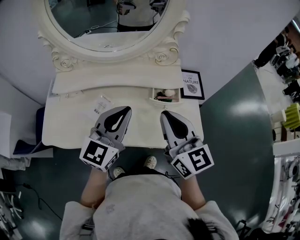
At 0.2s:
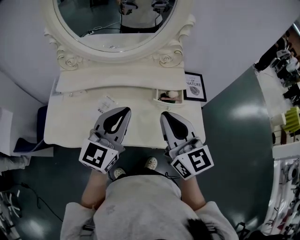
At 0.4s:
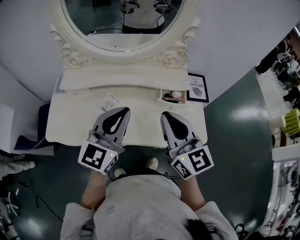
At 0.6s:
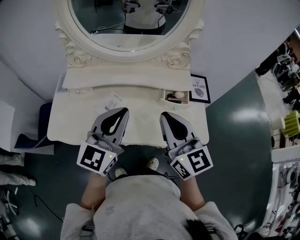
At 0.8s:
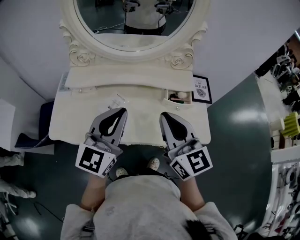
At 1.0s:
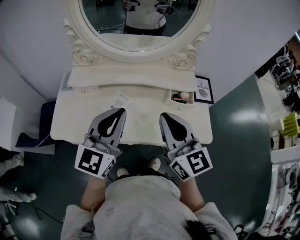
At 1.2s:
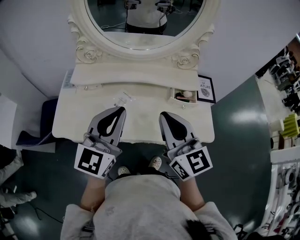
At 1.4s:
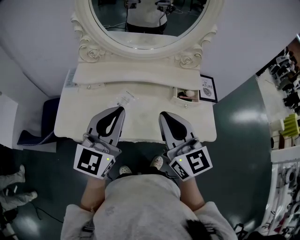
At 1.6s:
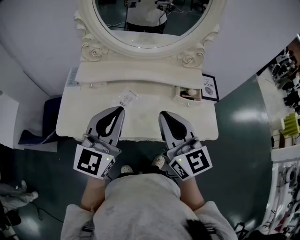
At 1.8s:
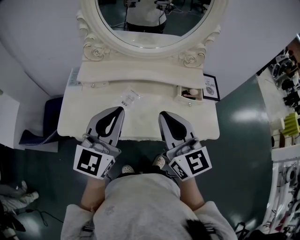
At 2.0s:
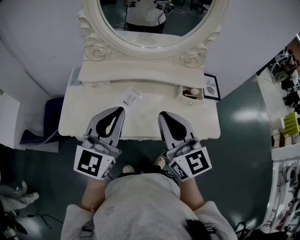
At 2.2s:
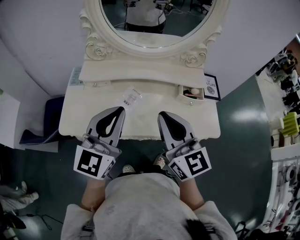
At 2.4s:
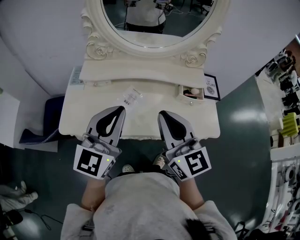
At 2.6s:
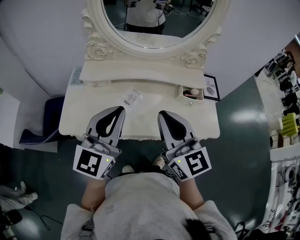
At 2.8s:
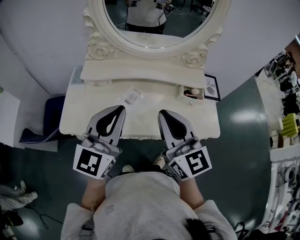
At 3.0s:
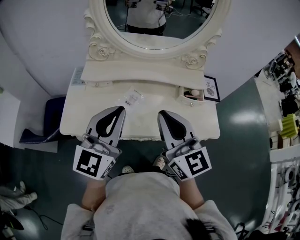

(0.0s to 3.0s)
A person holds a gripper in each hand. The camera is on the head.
0.0s - 1.6s: Both grippers travel together to the left, roughly 15 cm.
1.6s - 3.0s: The grippers stay close to where they were, moving slightly.

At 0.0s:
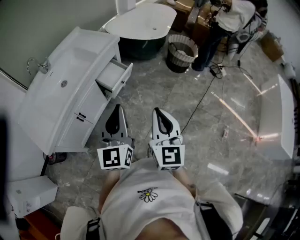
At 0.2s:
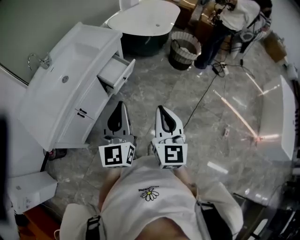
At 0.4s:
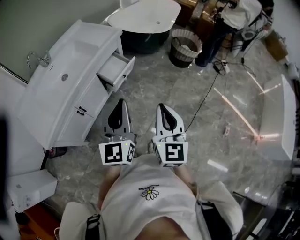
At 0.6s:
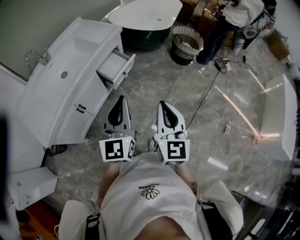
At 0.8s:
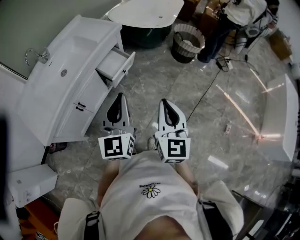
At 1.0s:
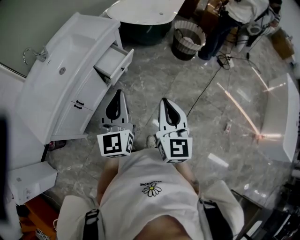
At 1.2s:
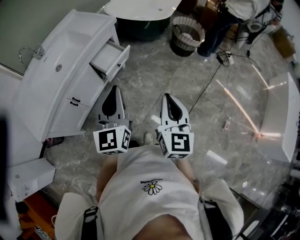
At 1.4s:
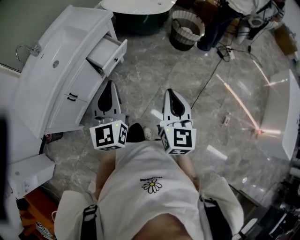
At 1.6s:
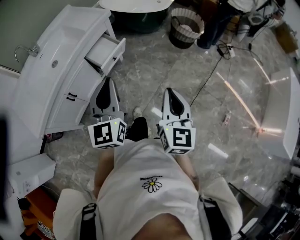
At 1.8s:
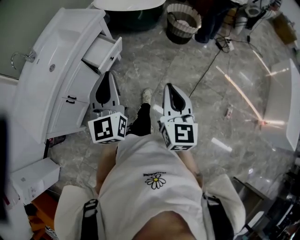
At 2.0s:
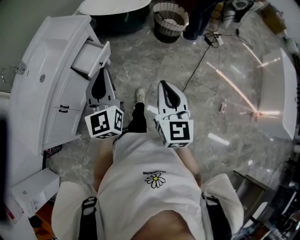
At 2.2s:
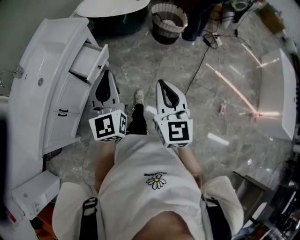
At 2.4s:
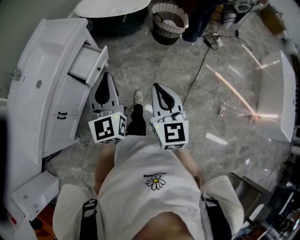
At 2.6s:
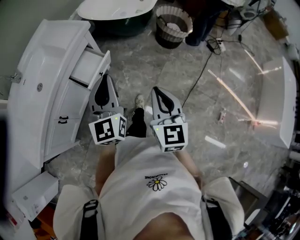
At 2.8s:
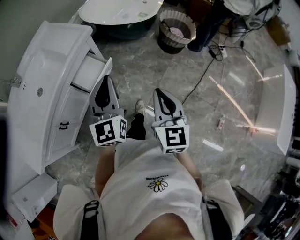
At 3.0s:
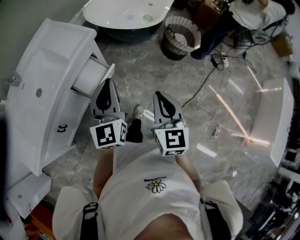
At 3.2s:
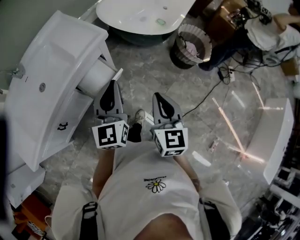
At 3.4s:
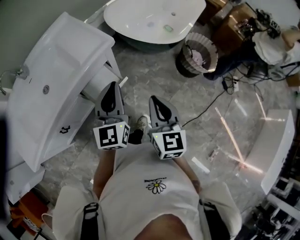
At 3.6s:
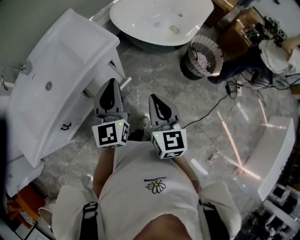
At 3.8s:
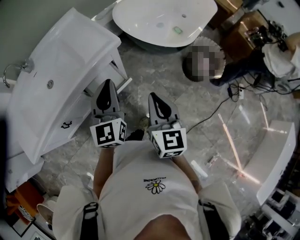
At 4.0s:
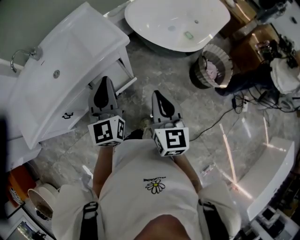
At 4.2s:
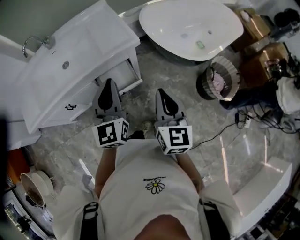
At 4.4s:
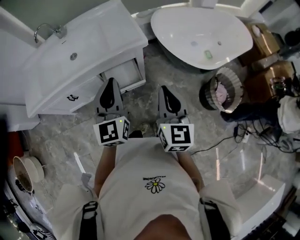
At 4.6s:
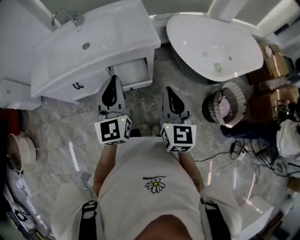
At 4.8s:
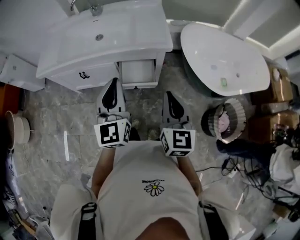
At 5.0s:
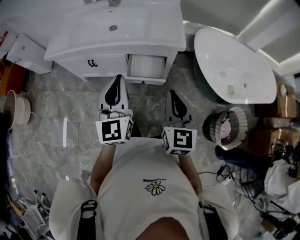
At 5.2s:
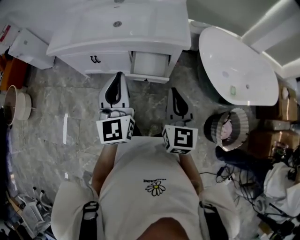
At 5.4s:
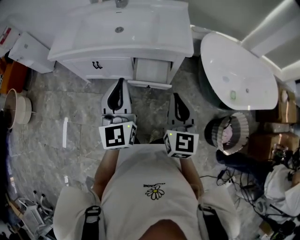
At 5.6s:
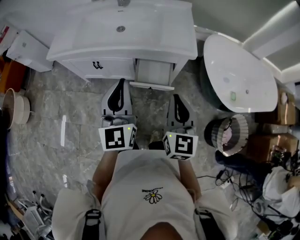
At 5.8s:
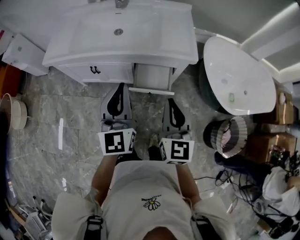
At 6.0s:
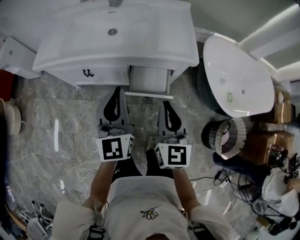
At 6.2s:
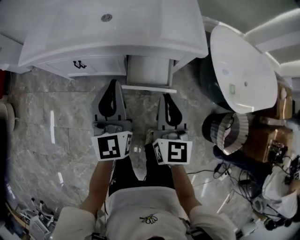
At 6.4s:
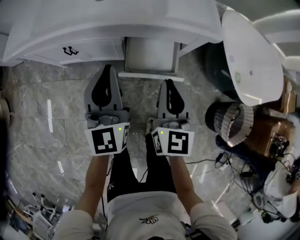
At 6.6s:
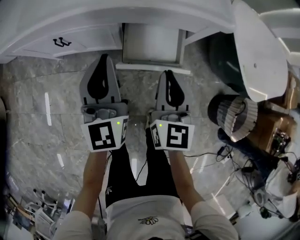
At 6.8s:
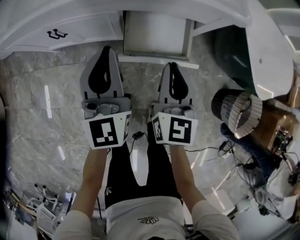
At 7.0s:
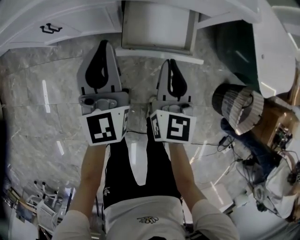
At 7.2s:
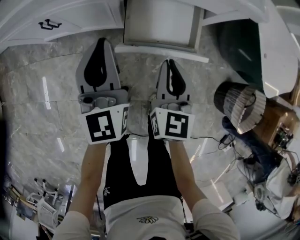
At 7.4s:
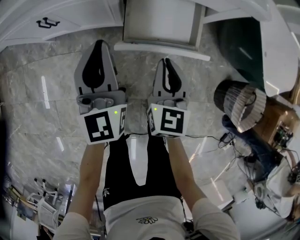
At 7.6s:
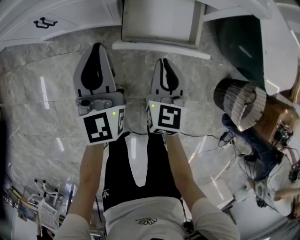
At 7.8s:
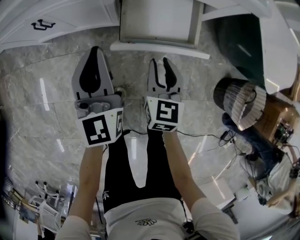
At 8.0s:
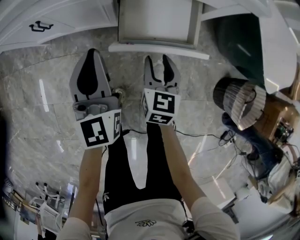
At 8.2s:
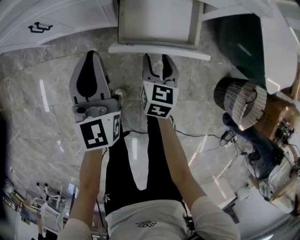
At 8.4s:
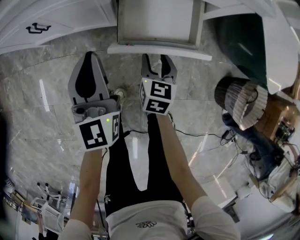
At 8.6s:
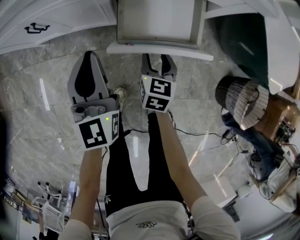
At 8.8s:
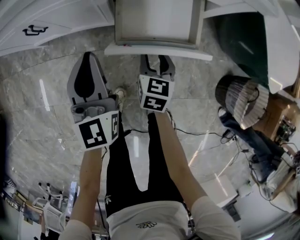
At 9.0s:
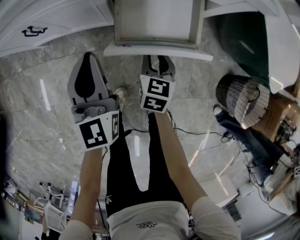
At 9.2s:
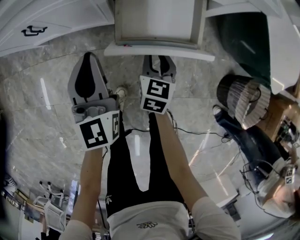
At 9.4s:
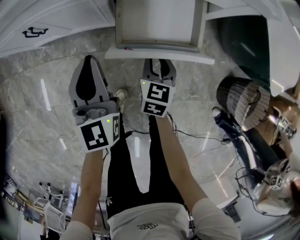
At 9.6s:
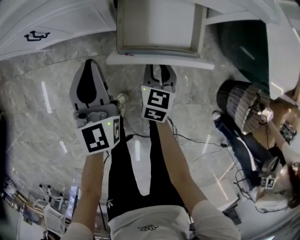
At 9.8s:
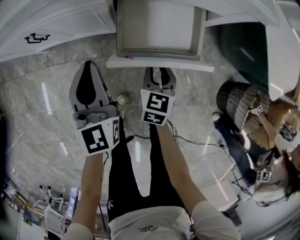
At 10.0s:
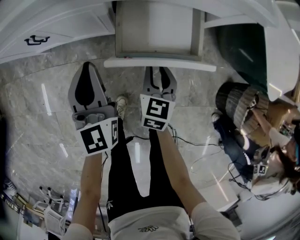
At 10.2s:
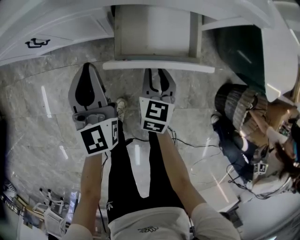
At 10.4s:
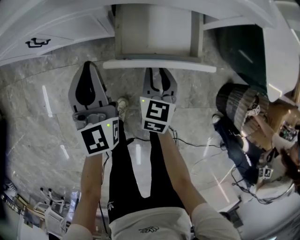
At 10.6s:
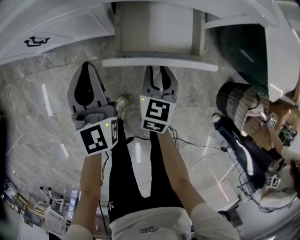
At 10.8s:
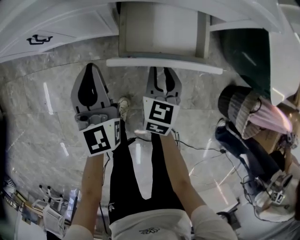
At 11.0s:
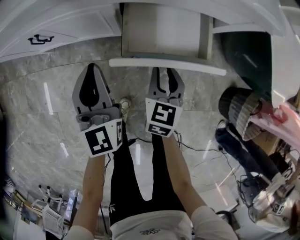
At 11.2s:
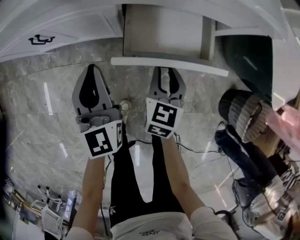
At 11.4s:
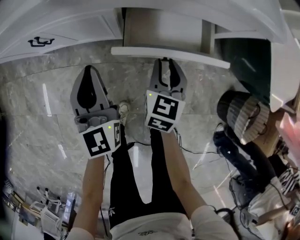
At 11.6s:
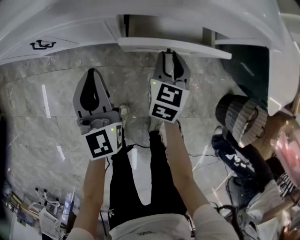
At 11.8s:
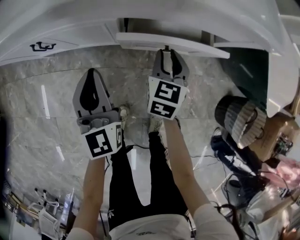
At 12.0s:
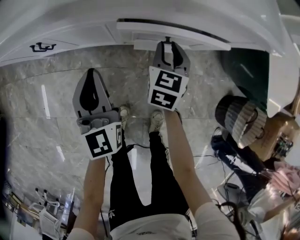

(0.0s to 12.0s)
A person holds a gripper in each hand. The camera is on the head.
0.0s - 1.6s: The left gripper travels to the right and forward by about 10 cm. The right gripper moves to the right, about 15 cm.
1.6s - 3.0s: The two grippers go about 25 cm forward.
3.0s - 4.4s: The right gripper ends up roughly 20 cm from where it was, and rotates approximately 30 degrees, while the left gripper shifts by some 10 cm, and rotates some 40 degrees.
4.4s - 6.0s: The right gripper moves to the left and forward, approximately 15 cm, and rotates roughly 20 degrees; the left gripper travels to the left by approximately 15 cm, and turns by roughly 20 degrees.
6.0s - 7.6s: The grippers both shift downward by roughly 30 cm. The right gripper swivels some 20 degrees.
7.6s - 9.0s: The right gripper is displaced downward by some 10 cm, and opens its fingers.
9.0s - 10.4s: The grippers make only small movements.
10.4s - 12.0s: The right gripper moves forward, roughly 15 cm.

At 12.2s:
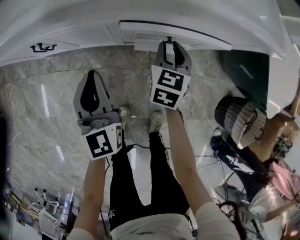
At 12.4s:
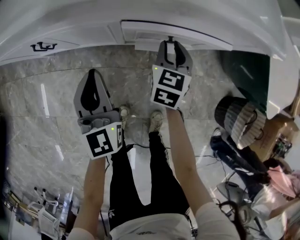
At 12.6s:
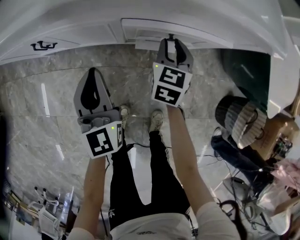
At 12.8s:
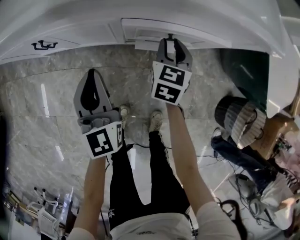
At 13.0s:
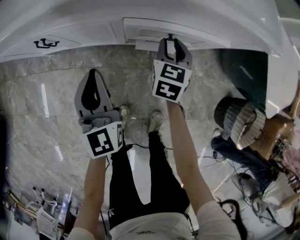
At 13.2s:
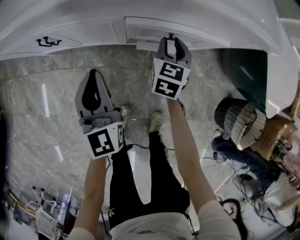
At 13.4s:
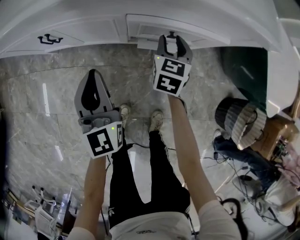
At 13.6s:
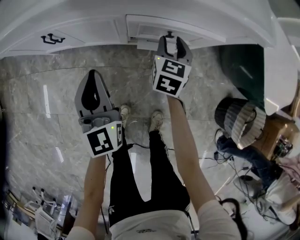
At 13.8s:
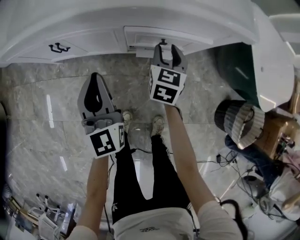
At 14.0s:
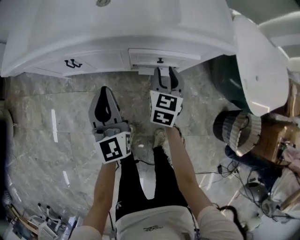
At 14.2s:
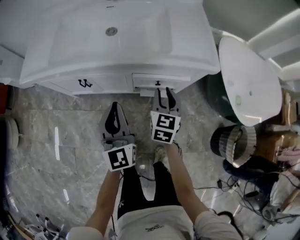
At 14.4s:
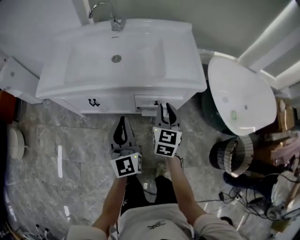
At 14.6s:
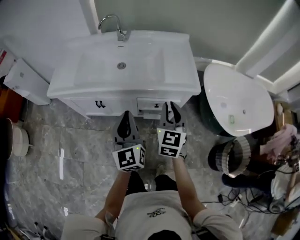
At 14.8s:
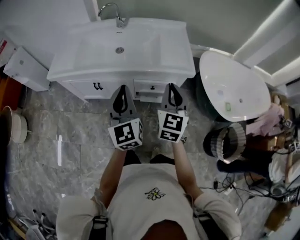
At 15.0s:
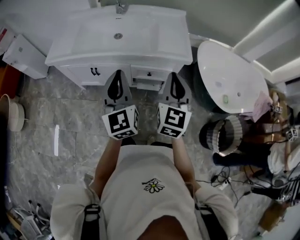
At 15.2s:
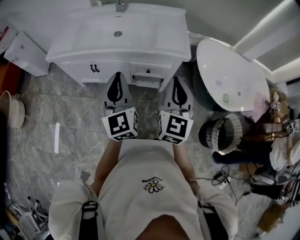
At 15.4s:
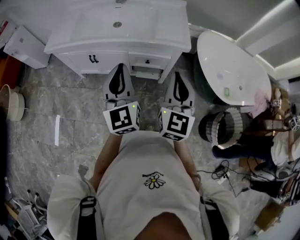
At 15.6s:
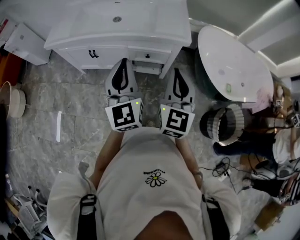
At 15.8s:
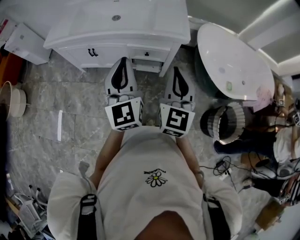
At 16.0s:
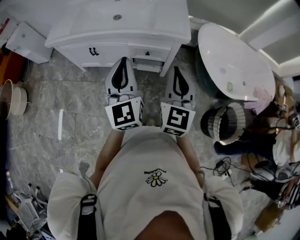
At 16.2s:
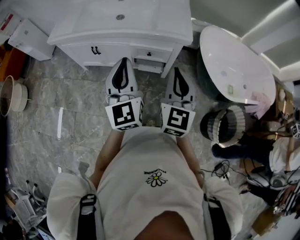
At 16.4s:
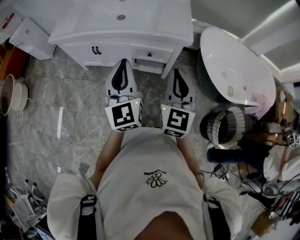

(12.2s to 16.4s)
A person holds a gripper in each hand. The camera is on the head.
12.2s - 13.6s: The grippers make only small movements.
13.6s - 15.0s: The left gripper heads upward, covering approximately 40 cm. Meanwhile the right gripper moves upward and backward, roughly 50 cm, tips its fingers upward by some 30 degrees, and closes.
15.0s - 16.4s: The right gripper heads backward, covering some 10 cm. The left gripper goes about 10 cm backward and to the right.

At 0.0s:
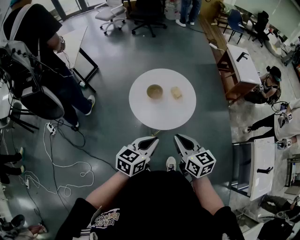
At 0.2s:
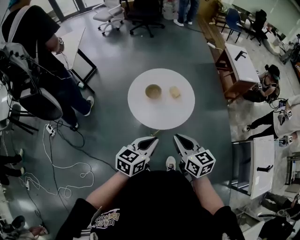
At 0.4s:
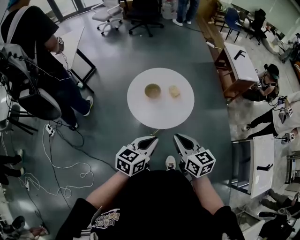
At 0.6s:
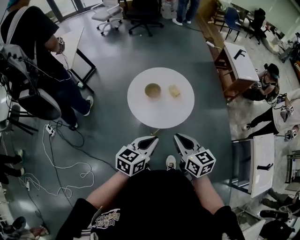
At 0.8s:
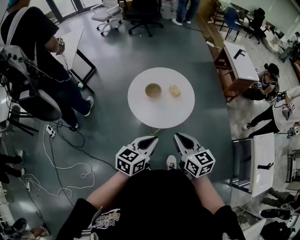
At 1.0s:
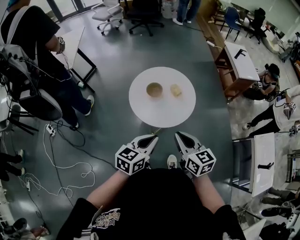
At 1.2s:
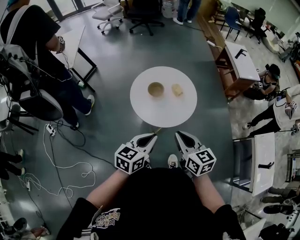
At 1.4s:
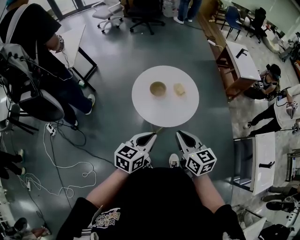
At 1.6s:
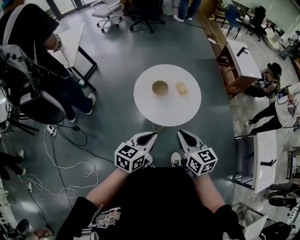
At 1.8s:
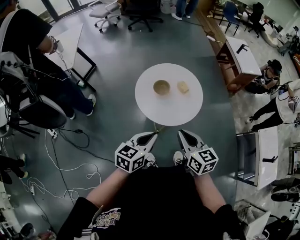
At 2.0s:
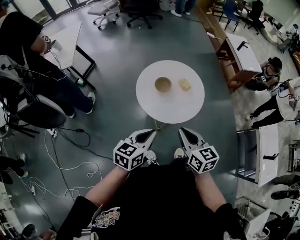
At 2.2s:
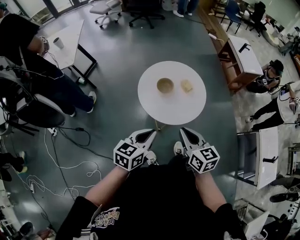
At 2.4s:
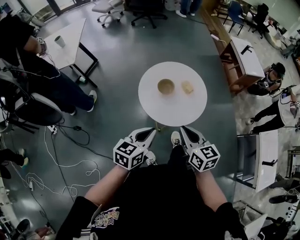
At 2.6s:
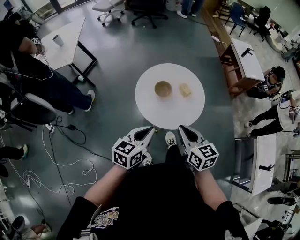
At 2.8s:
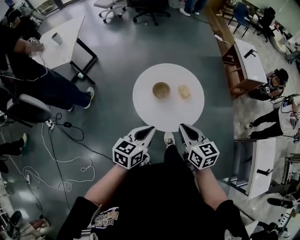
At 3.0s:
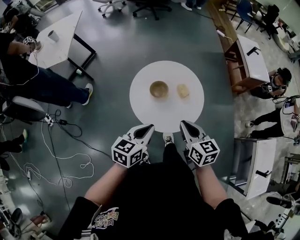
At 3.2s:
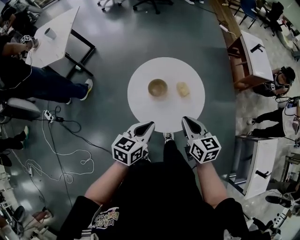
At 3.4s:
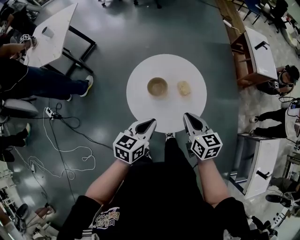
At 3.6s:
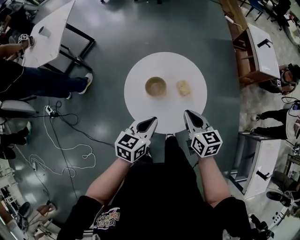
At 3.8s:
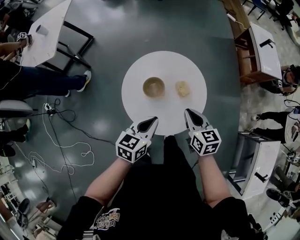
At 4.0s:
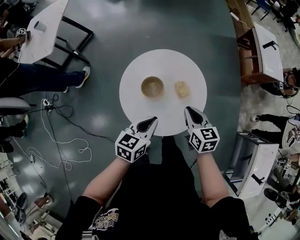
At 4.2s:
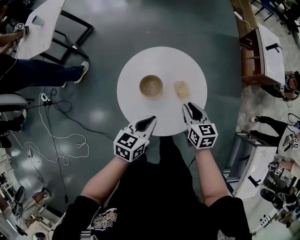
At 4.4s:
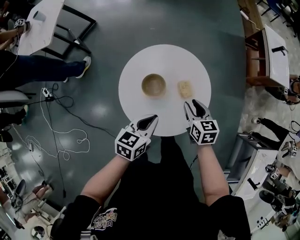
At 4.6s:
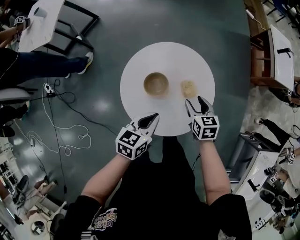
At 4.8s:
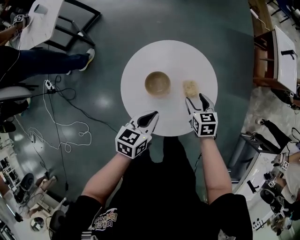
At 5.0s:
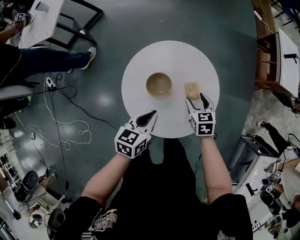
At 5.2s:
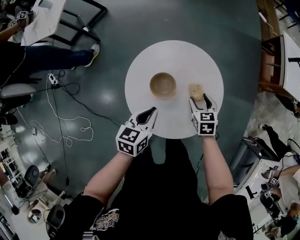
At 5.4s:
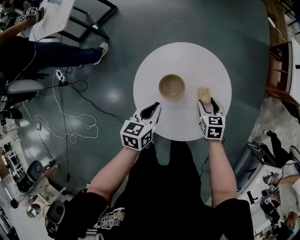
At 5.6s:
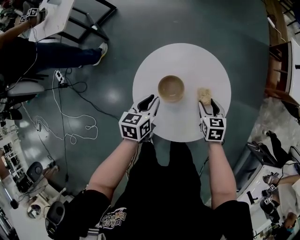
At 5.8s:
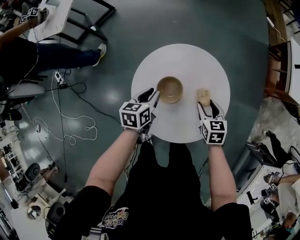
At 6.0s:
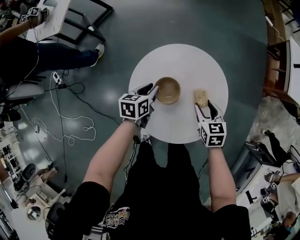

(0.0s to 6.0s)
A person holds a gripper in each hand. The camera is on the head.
0.0s - 1.6s: The left gripper heads to the left, covering roughly 5 cm.
1.6s - 3.0s: Both grippers travel together forward, about 10 cm.
3.0s - 4.4s: The right gripper is displaced downward and forward by roughly 25 cm, and opens up, while the left gripper goes about 15 cm forward, downward and to the right.
4.4s - 6.0s: The left gripper heads forward, downward and to the left, covering some 20 cm, turns by roughly 20 degrees, and opens its fingers; the right gripper goes roughly 5 cm downward, and opens its fingers.
